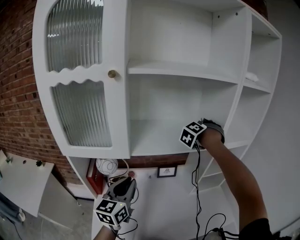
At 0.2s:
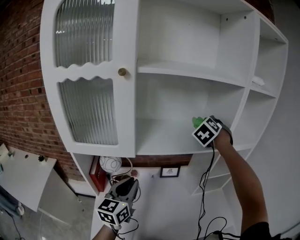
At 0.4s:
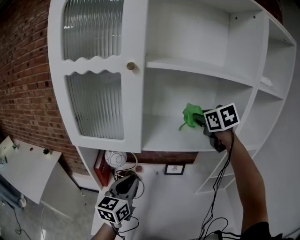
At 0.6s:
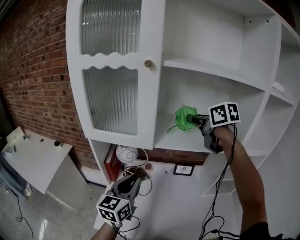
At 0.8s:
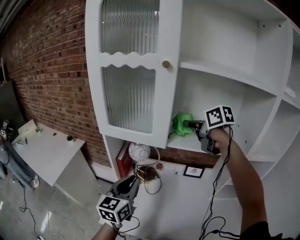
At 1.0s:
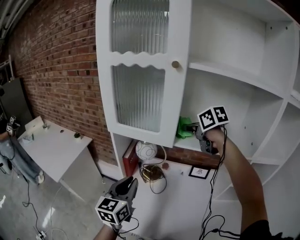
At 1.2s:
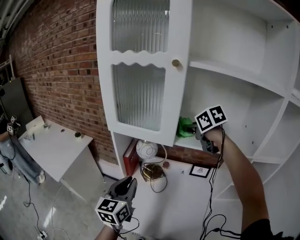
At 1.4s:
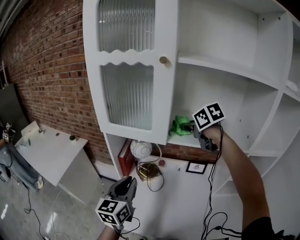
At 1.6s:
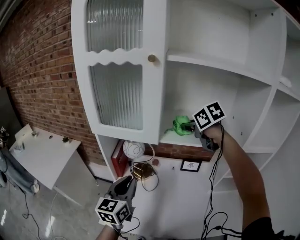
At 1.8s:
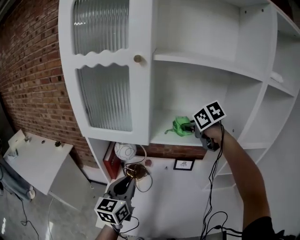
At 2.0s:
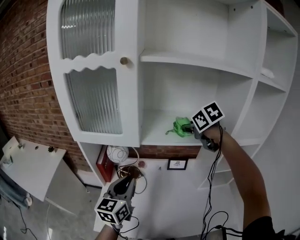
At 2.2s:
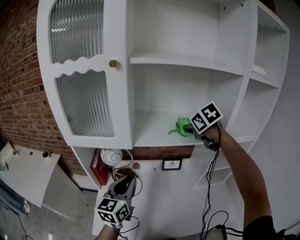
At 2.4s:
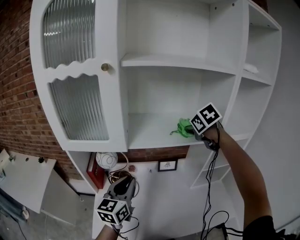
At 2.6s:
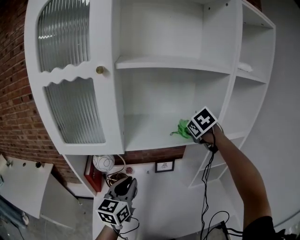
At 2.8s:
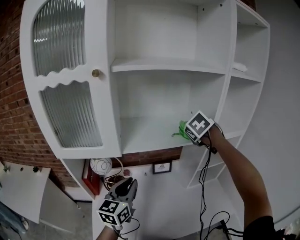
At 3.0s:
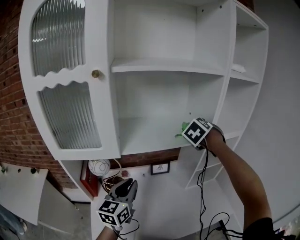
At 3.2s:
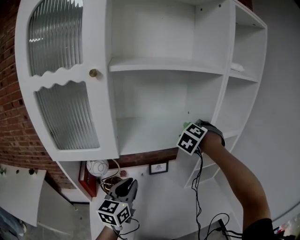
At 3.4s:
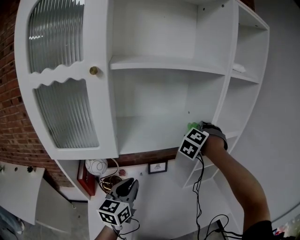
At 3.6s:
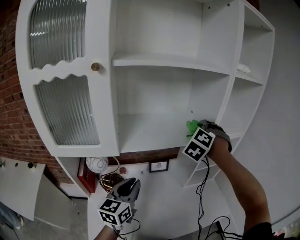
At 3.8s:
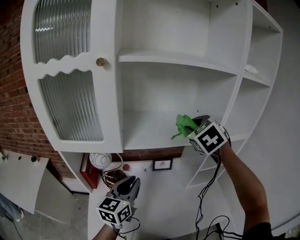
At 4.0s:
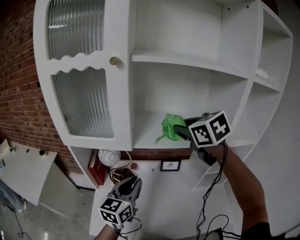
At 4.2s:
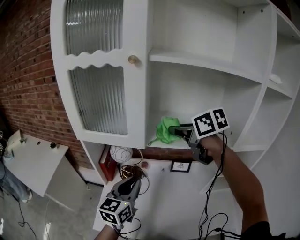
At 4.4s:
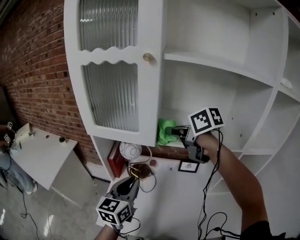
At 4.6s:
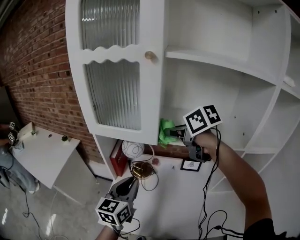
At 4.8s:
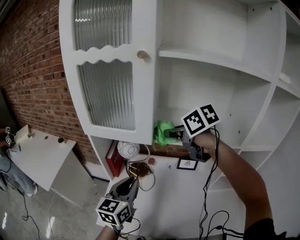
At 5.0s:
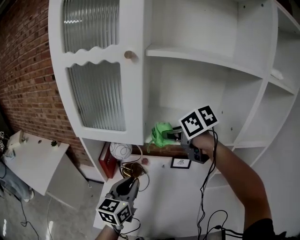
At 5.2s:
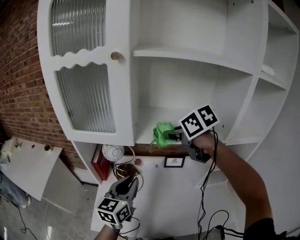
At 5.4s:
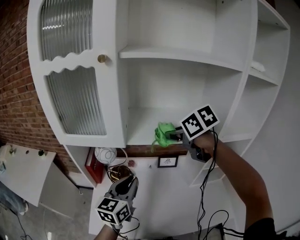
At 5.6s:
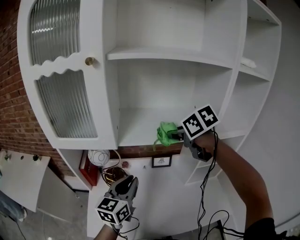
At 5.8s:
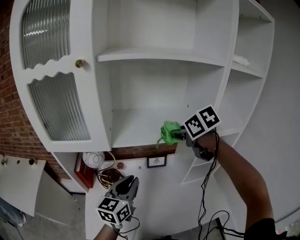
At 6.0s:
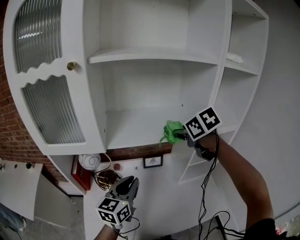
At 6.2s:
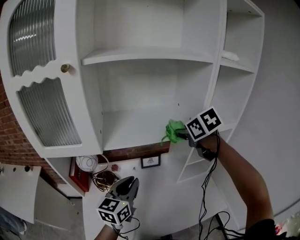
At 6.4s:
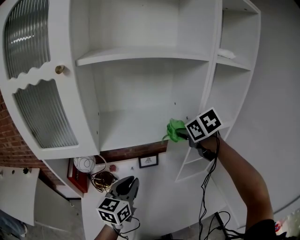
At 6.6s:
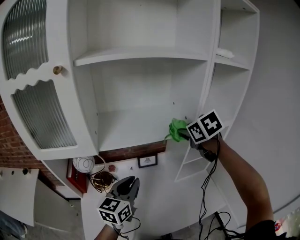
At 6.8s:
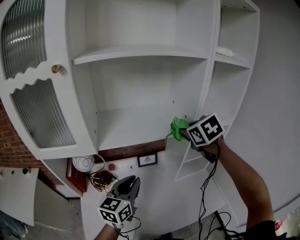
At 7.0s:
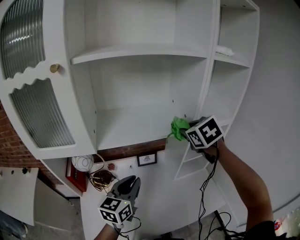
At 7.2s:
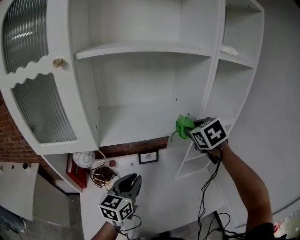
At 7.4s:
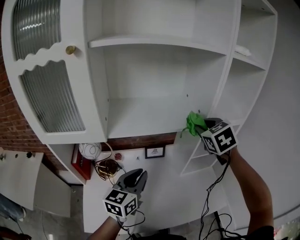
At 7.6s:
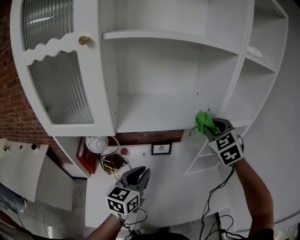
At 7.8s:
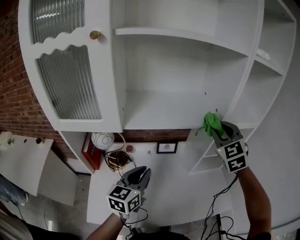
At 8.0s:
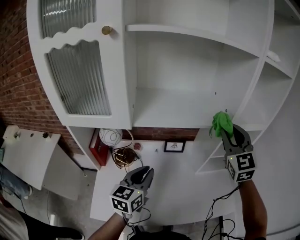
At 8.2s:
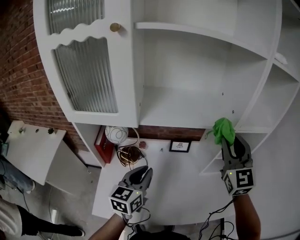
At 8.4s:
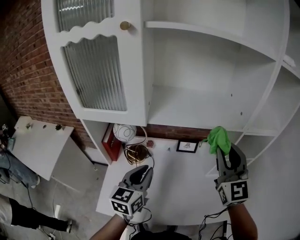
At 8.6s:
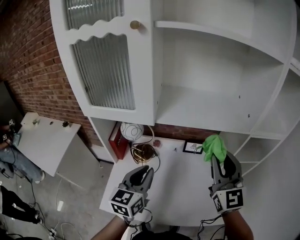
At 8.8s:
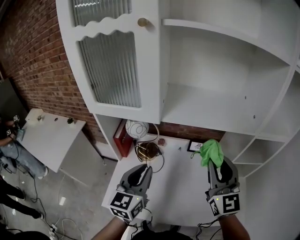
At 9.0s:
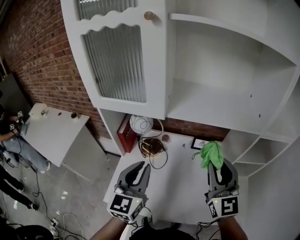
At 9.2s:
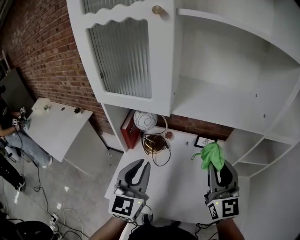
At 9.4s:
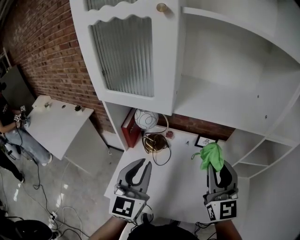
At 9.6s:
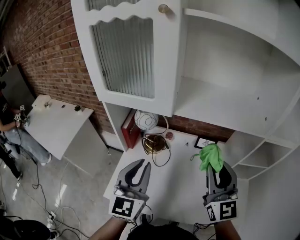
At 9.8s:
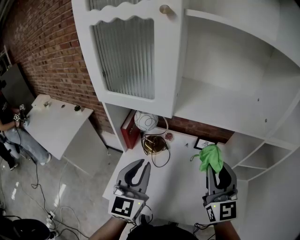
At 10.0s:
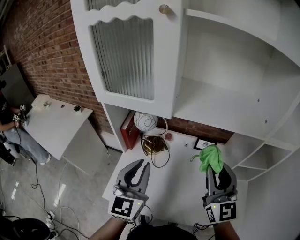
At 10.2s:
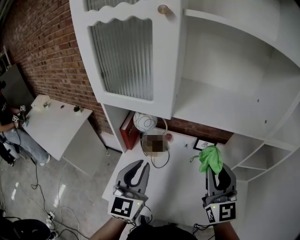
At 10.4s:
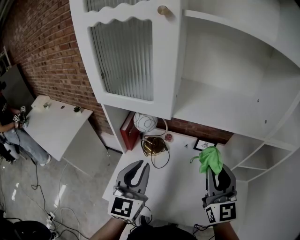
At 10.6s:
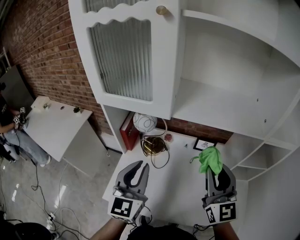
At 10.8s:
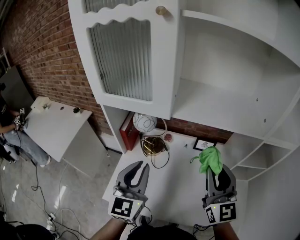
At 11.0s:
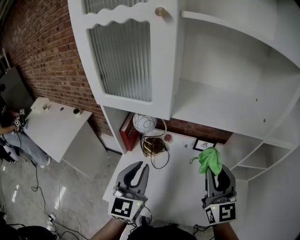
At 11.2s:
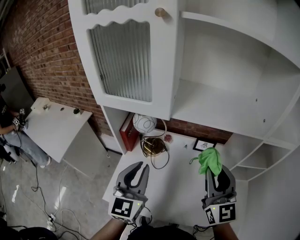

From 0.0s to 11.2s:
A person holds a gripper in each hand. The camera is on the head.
From 0.0s to 1.6s: The left gripper moves some 10 cm. The right gripper moves some 10 cm upward and comes back, and turns by about 80 degrees.
From 1.6s to 3.2s: The right gripper moves some 25 cm, and swivels about 70 degrees, while the left gripper moves roughly 15 cm, and changes its angle by roughly 30 degrees.
From 3.2s to 4.8s: The left gripper shifts by roughly 10 cm, and swivels approximately 20 degrees; the right gripper moves approximately 30 cm, and turns by some 80 degrees.
From 4.8s to 6.4s: The right gripper shifts by about 30 cm, and rotates approximately 40 degrees. The left gripper moves approximately 15 cm, and rotates some 20 degrees.
From 6.4s to 8.0s: The left gripper moves about 5 cm. Meanwhile the right gripper shifts by approximately 5 cm, and tips its fingers upward by some 40 degrees.
From 8.0s to 9.6s: The right gripper heads to the left, downward and backward, covering roughly 20 cm, and changes its angle by roughly 30 degrees. The left gripper moves to the left, upward and backward, some 15 cm, and changes its angle by some 30 degrees.
From 9.6s to 11.2s: Neither gripper changes place.

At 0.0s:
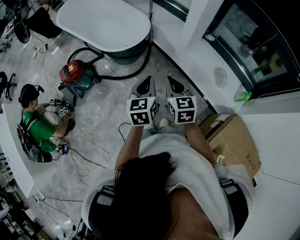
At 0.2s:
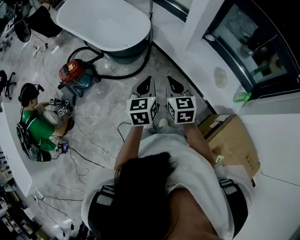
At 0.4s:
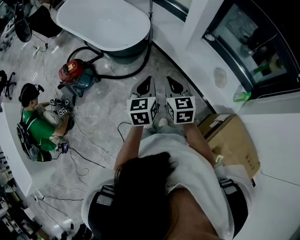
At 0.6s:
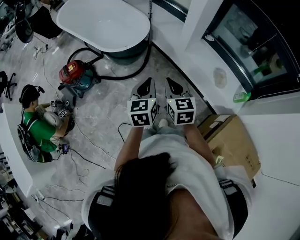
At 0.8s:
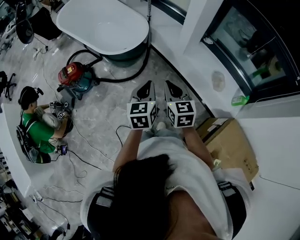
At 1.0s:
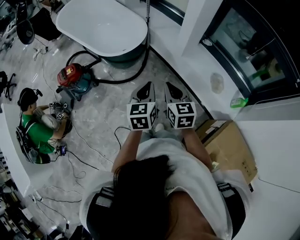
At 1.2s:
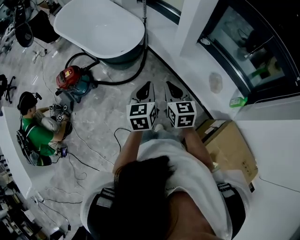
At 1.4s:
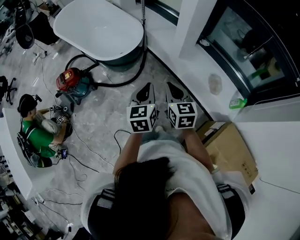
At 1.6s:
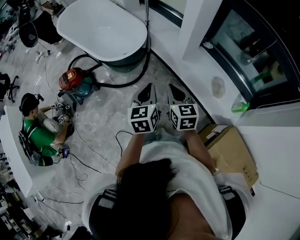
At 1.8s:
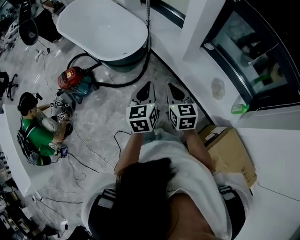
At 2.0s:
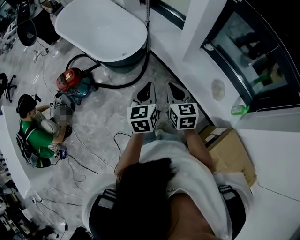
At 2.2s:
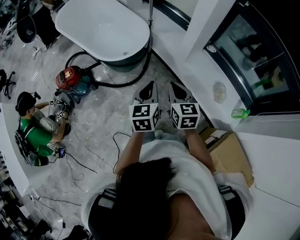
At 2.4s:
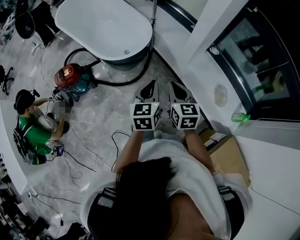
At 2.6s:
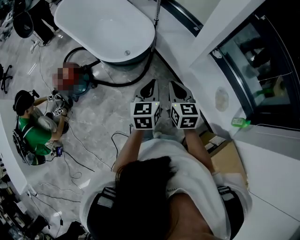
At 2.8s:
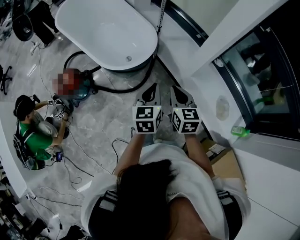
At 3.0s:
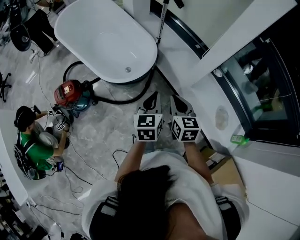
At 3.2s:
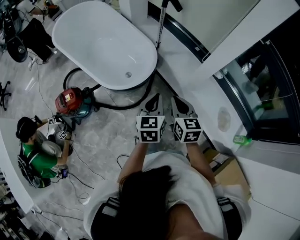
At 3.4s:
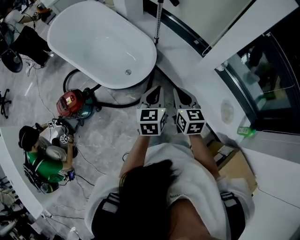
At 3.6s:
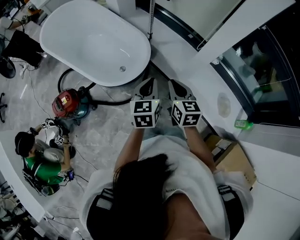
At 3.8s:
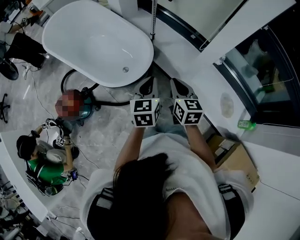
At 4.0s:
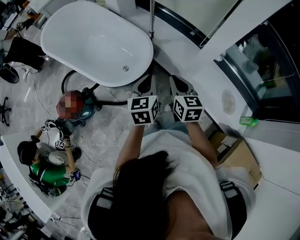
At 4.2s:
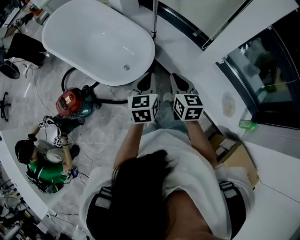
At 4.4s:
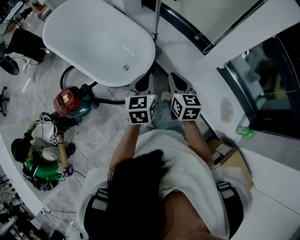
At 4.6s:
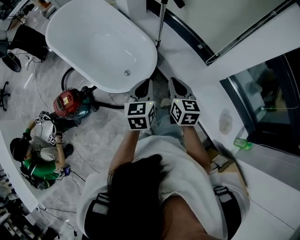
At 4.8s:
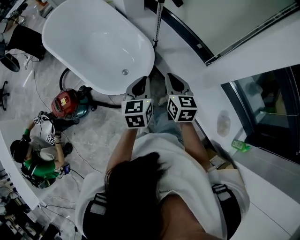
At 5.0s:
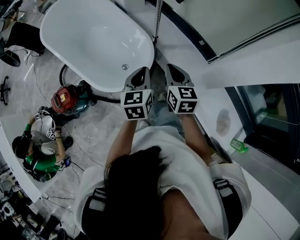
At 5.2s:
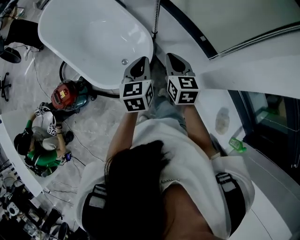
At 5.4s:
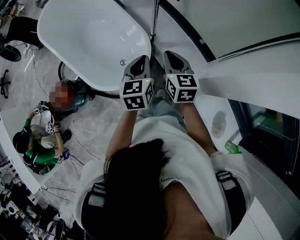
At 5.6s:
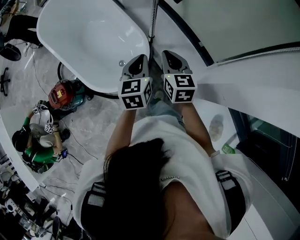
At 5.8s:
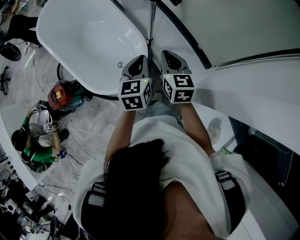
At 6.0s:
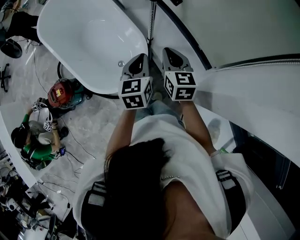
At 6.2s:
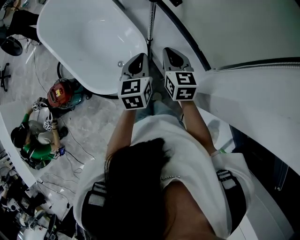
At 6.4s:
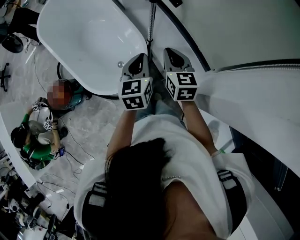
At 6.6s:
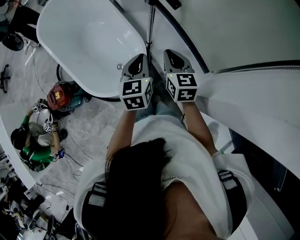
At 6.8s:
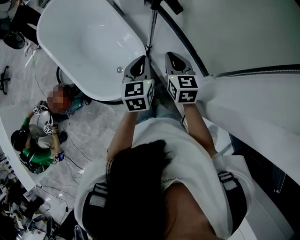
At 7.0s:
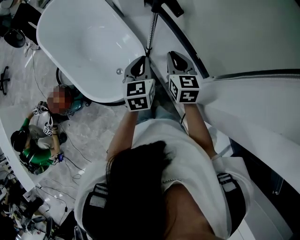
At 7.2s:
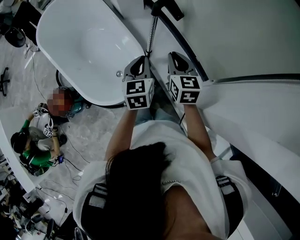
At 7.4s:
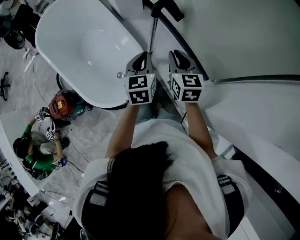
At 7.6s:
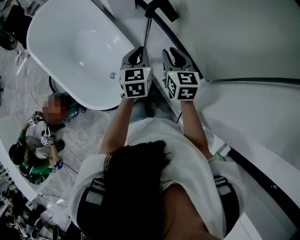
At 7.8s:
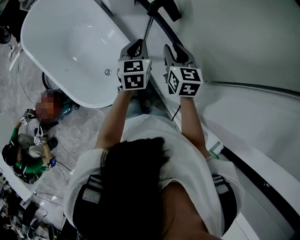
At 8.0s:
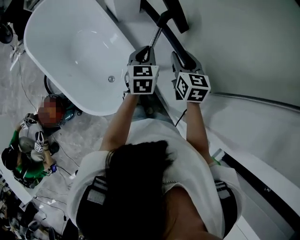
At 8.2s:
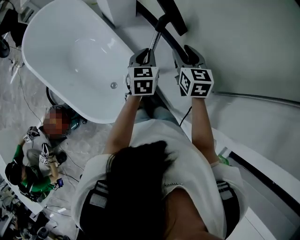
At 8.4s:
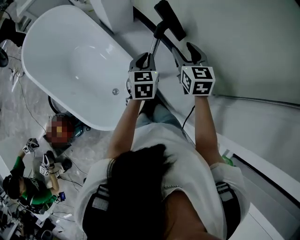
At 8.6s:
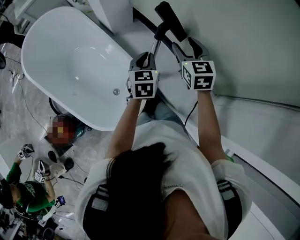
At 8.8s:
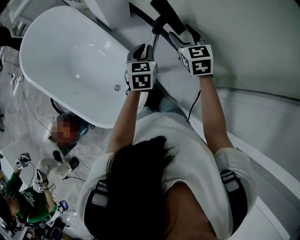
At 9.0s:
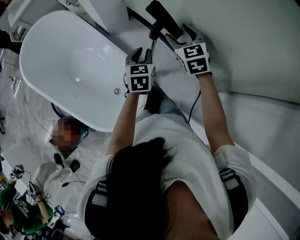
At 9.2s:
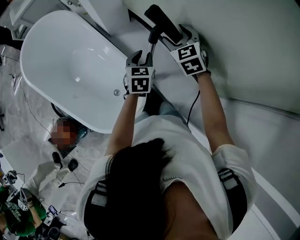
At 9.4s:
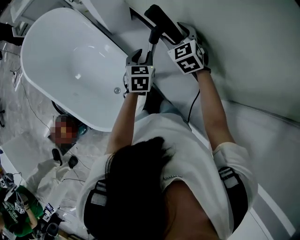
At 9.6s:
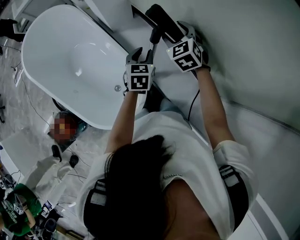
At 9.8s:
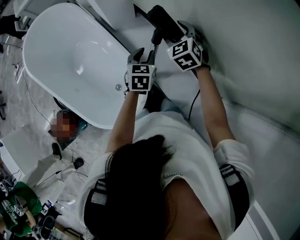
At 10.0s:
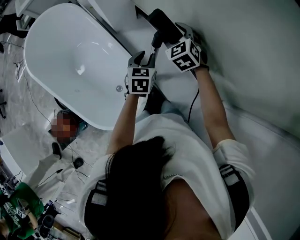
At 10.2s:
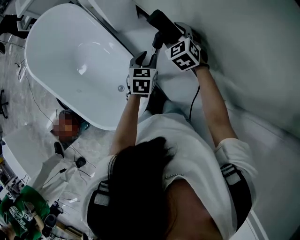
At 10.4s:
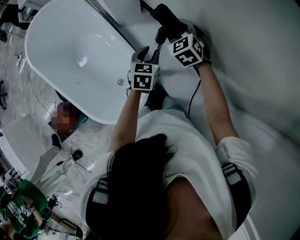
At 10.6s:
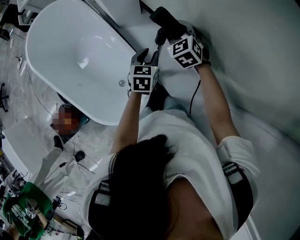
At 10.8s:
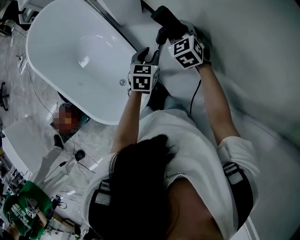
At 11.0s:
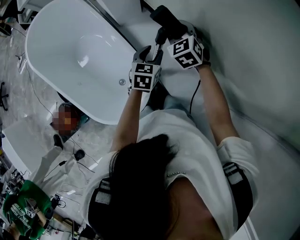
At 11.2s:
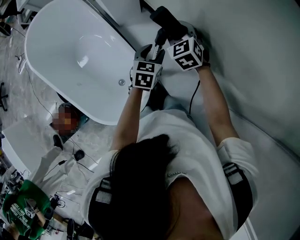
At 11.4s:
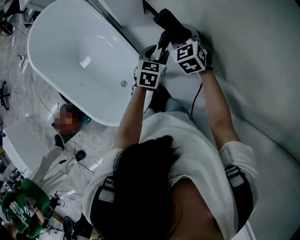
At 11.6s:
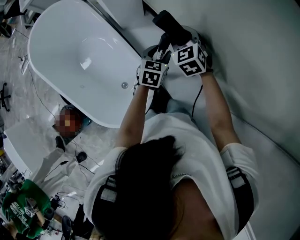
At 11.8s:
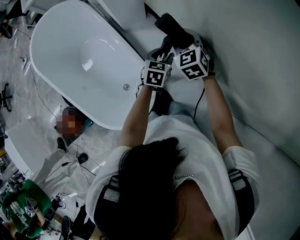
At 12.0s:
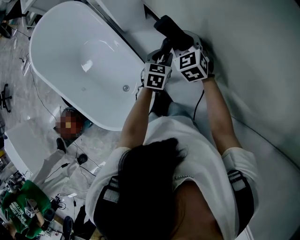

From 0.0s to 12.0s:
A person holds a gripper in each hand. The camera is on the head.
From 0.0s to 1.6s: The two grippers go approximately 5 cm to the right.
From 1.6s to 3.0s: The grippers both shift forward by about 20 cm.
From 3.0s to 4.4s: Both grippers move forward, some 10 cm.
From 4.4s to 6.0s: The left gripper goes approximately 25 cm forward and to the right. Meanwhile the right gripper goes roughly 25 cm forward.
From 6.0s to 7.6s: The grippers both shift forward by about 10 cm.
From 7.6s to 9.0s: The grippers both shift forward by approximately 15 cm. The right gripper changes its angle by some 20 degrees, and opens.
From 9.0s to 10.4s: The right gripper goes approximately 10 cm forward and downward, and turns by about 20 degrees; the left gripper moves roughly 5 cm.
From 10.4s to 12.0s: The left gripper ends up about 5 cm from where it was.
